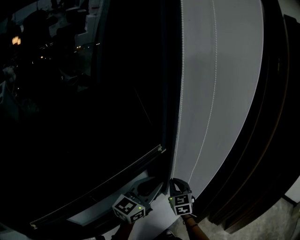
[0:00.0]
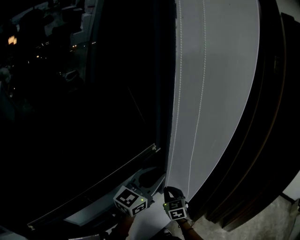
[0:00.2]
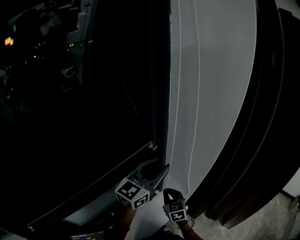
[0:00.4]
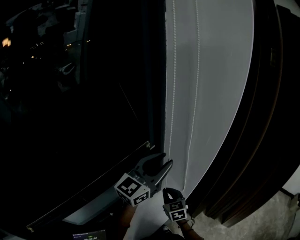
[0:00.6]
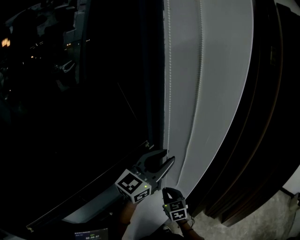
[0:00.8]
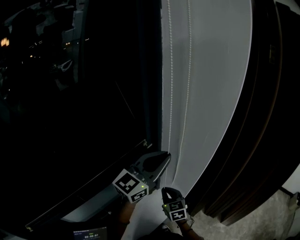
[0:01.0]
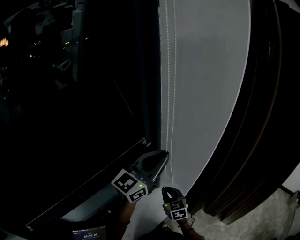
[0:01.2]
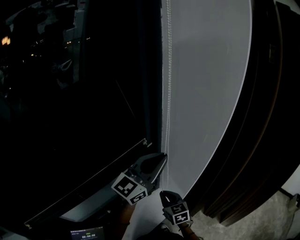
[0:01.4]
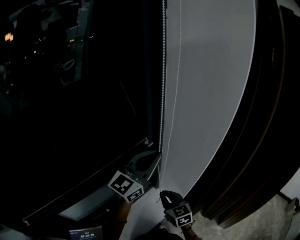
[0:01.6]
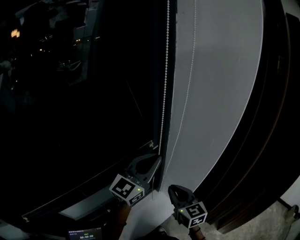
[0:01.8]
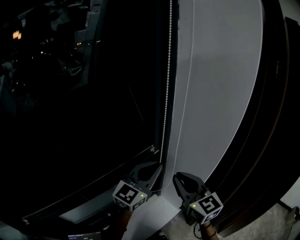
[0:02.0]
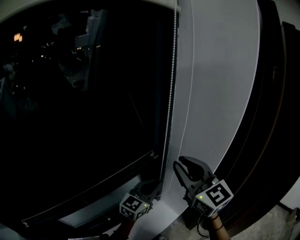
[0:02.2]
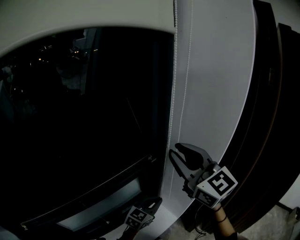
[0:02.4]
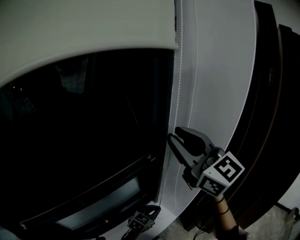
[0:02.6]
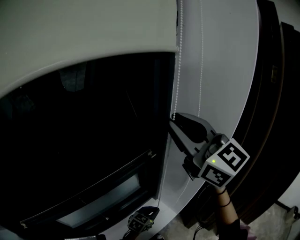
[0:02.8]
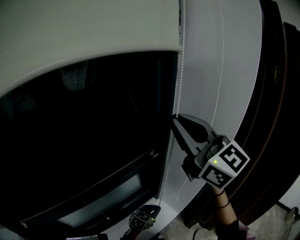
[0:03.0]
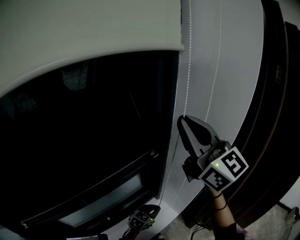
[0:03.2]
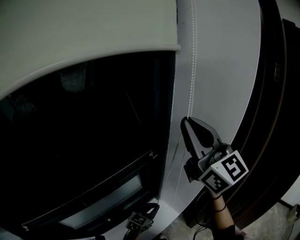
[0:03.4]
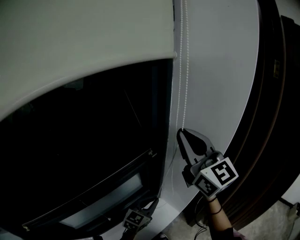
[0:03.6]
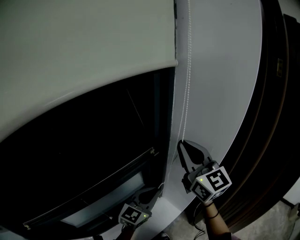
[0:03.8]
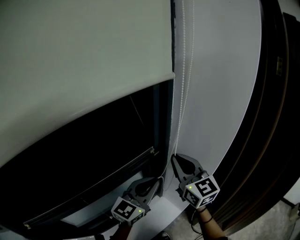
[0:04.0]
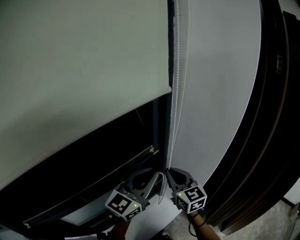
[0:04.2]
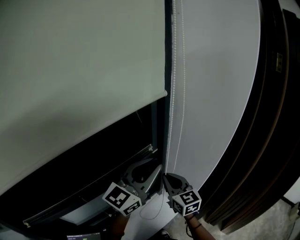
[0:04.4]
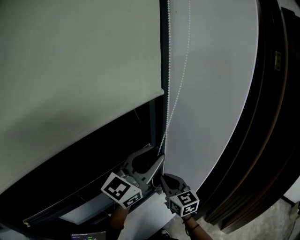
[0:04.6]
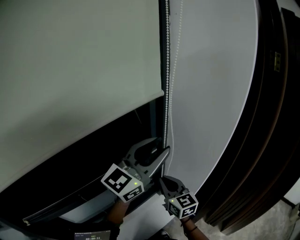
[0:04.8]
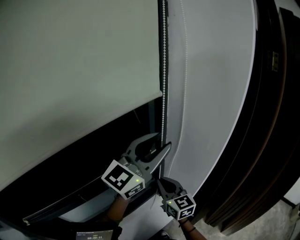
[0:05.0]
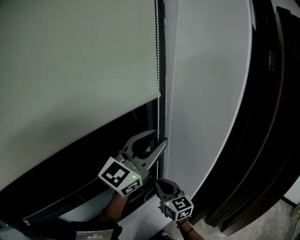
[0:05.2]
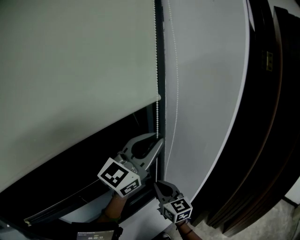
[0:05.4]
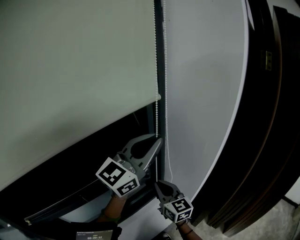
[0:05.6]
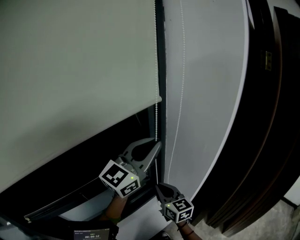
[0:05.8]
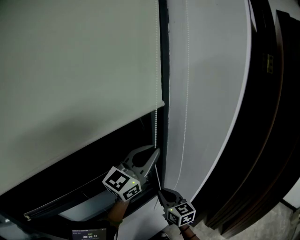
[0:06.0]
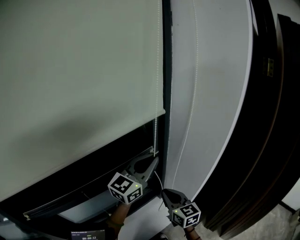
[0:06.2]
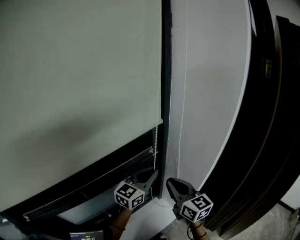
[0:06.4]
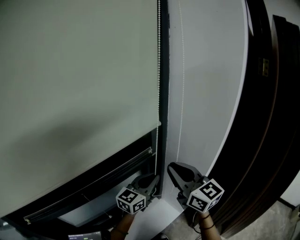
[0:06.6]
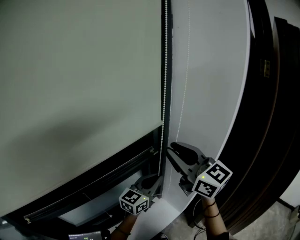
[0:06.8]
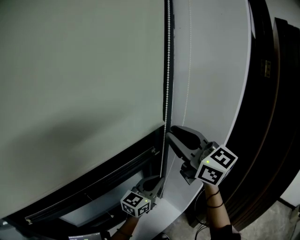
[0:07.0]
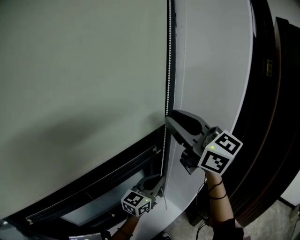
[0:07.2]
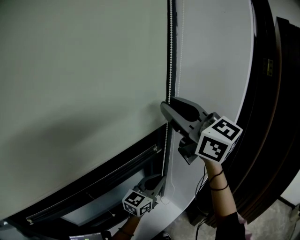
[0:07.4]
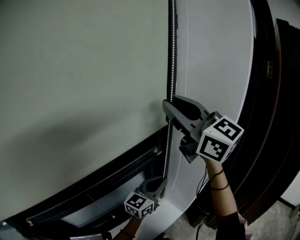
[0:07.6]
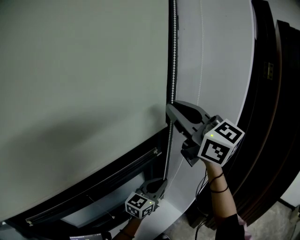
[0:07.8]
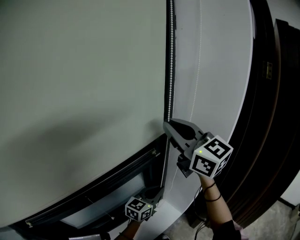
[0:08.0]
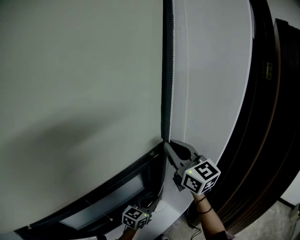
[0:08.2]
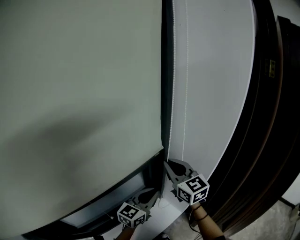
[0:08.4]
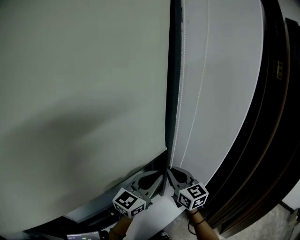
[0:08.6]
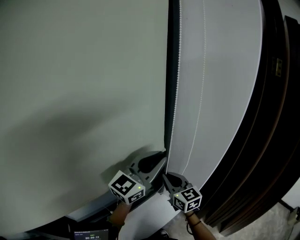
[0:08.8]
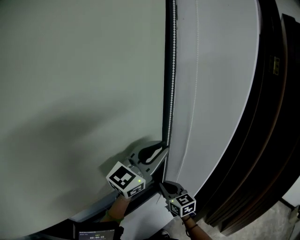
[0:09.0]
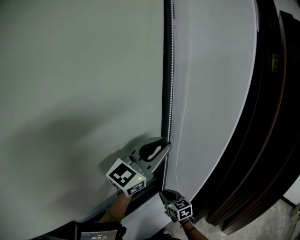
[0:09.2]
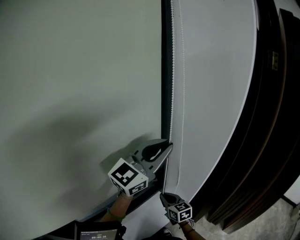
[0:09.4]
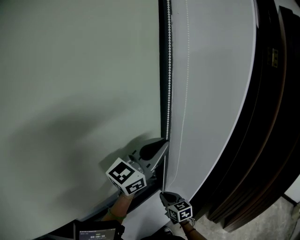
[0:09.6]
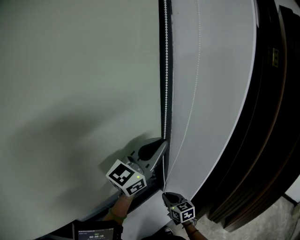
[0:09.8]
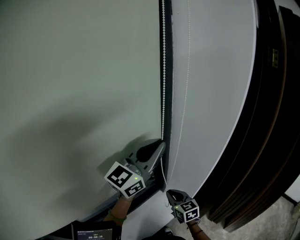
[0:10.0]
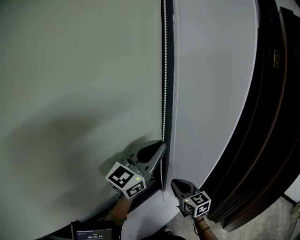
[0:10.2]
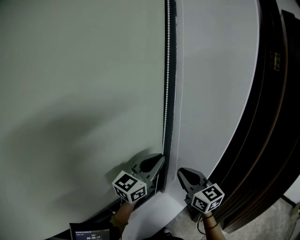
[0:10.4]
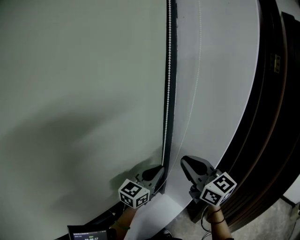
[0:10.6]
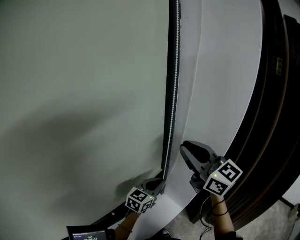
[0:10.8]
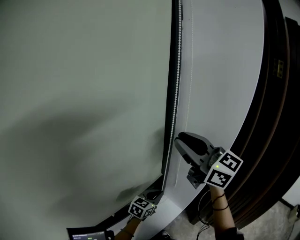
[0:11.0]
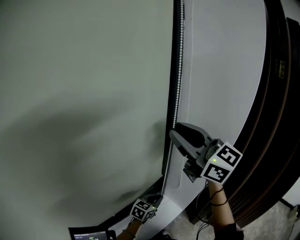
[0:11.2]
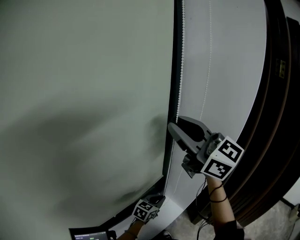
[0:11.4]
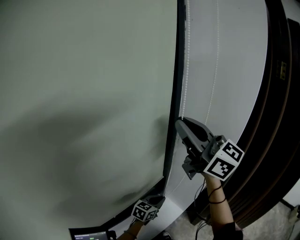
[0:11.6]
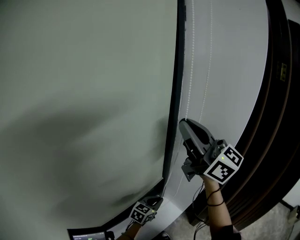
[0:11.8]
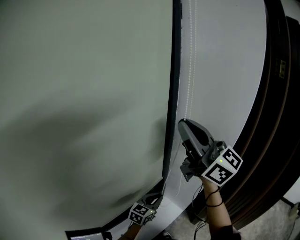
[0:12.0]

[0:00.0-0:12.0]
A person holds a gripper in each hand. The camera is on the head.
0:00.0 to 0:01.6: The right gripper travels backward by roughly 10 cm; the left gripper shifts about 10 cm upward and forward.
0:01.6 to 0:03.0: The right gripper goes approximately 40 cm upward, and tilts its fingers some 40 degrees upward. Meanwhile the left gripper is displaced downward by approximately 35 cm, and angles its fingers downward, by about 50 degrees.
0:03.0 to 0:04.4: The left gripper travels upward by about 35 cm, and angles its fingers upward, by about 50 degrees. The right gripper travels downward by about 35 cm, and turns by about 30 degrees.
0:04.4 to 0:06.0: The right gripper goes about 5 cm backward.
0:06.0 to 0:07.6: The left gripper heads downward, covering approximately 15 cm, while the right gripper is displaced upward by about 40 cm, and rotates roughly 40 degrees.
0:07.6 to 0:09.0: The right gripper shifts approximately 40 cm downward, and swivels roughly 30 degrees; the left gripper heads upward, covering about 15 cm.
0:09.0 to 0:10.4: The left gripper is displaced downward by approximately 10 cm, while the right gripper goes about 15 cm upward and to the right.
0:10.4 to 0:12.0: The right gripper moves upward, about 25 cm, and swivels some 30 degrees. Meanwhile the left gripper goes roughly 25 cm downward, and turns by roughly 30 degrees.

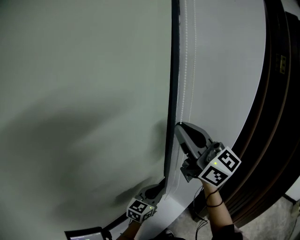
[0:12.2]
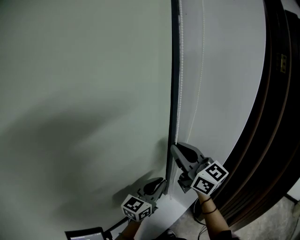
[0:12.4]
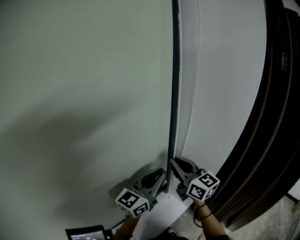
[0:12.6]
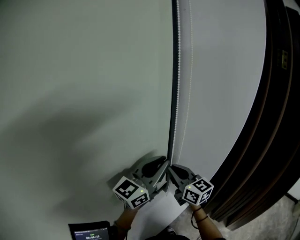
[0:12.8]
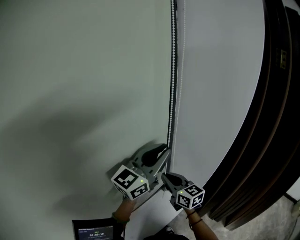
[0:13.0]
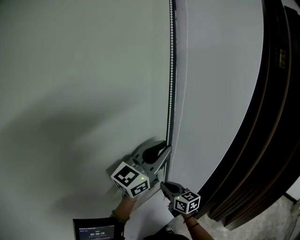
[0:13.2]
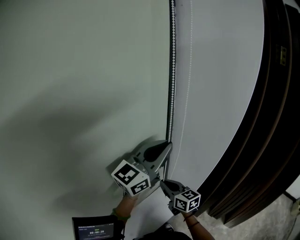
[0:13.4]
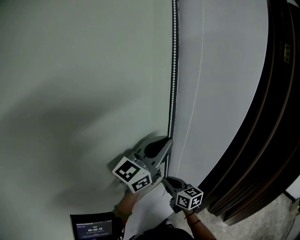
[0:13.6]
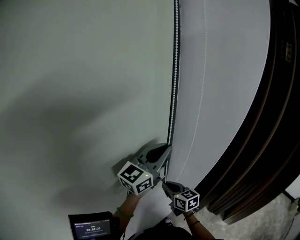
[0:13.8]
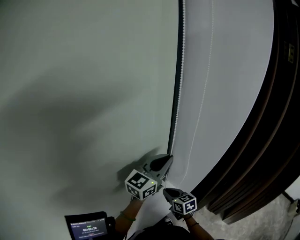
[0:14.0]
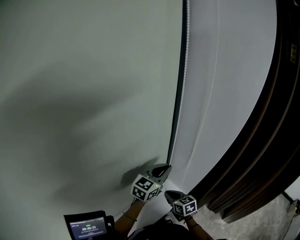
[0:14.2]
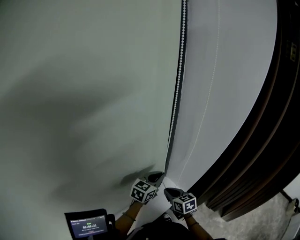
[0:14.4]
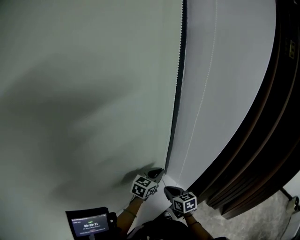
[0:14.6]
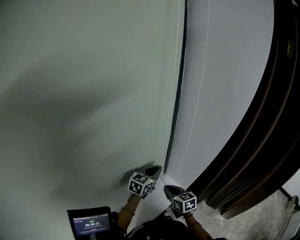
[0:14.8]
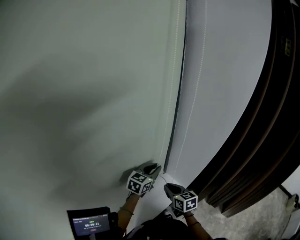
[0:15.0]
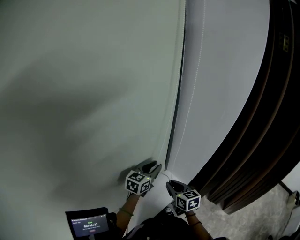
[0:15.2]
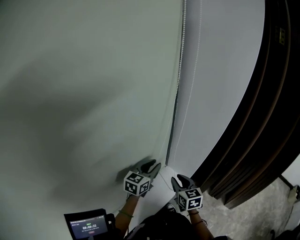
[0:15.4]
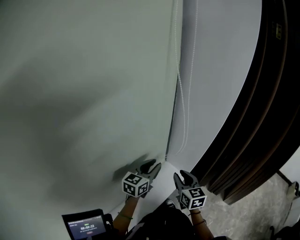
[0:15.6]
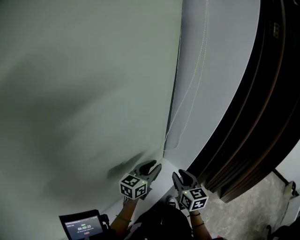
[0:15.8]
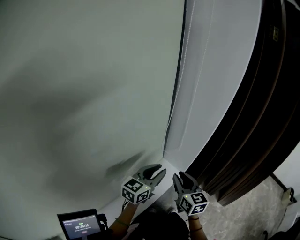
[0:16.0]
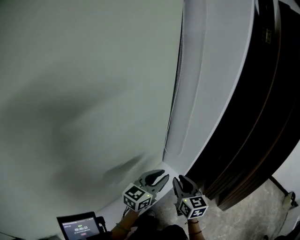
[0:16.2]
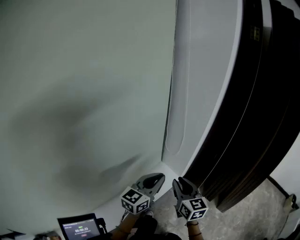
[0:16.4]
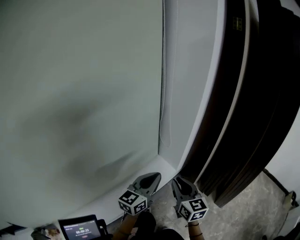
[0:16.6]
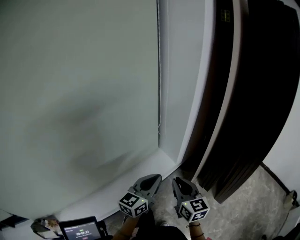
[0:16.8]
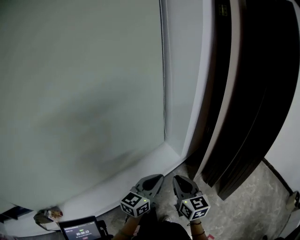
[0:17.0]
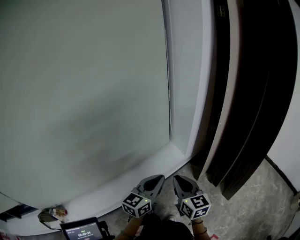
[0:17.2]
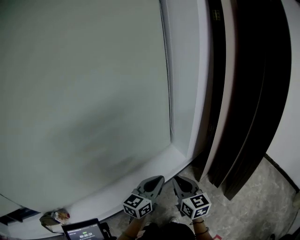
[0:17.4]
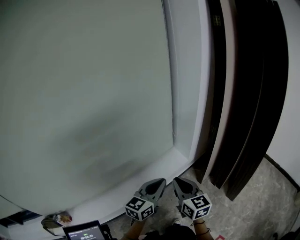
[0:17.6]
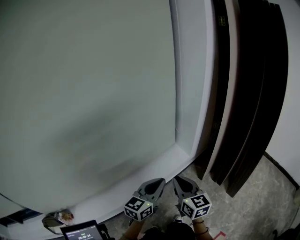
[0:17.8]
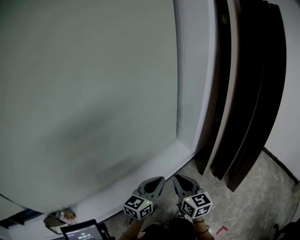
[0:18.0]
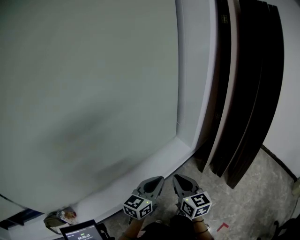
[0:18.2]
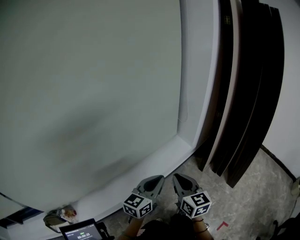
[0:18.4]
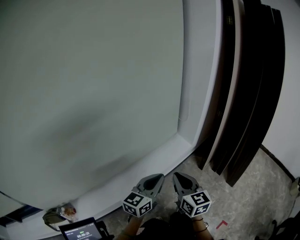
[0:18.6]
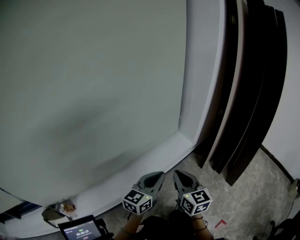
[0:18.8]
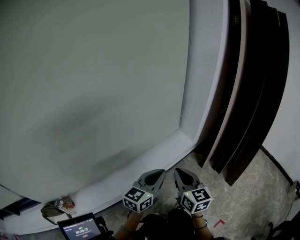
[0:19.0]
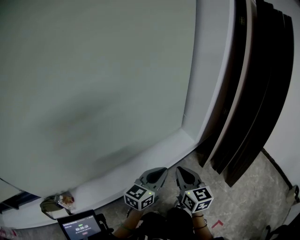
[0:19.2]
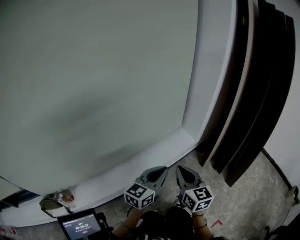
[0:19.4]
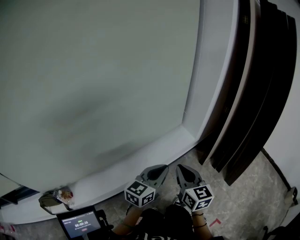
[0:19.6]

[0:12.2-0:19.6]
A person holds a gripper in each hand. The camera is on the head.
0:12.2 to 0:13.6: The left gripper goes about 25 cm upward, and rotates approximately 30 degrees. Meanwhile the right gripper heads downward, covering approximately 35 cm, and angles its fingers downward, by roughly 30 degrees.
0:13.6 to 0:15.2: The left gripper travels downward by about 30 cm, and angles its fingers downward, by approximately 30 degrees. Meanwhile the right gripper moves downward and backward, approximately 10 cm.
0:15.2 to 0:16.6: The left gripper goes roughly 30 cm backward and to the right, and closes its fingers. The right gripper shifts some 25 cm backward, to the right and upward.
0:16.6 to 0:18.2: The left gripper moves backward, roughly 25 cm, while the right gripper shifts some 25 cm backward and to the left.
0:18.2 to 0:19.6: The grippers make only small movements.

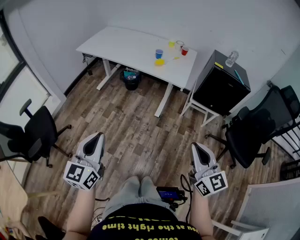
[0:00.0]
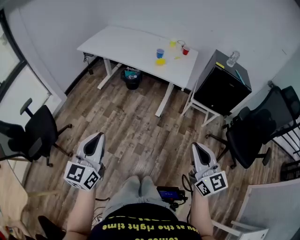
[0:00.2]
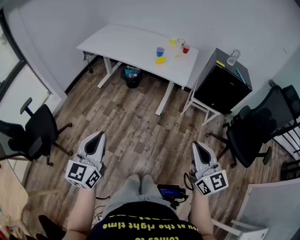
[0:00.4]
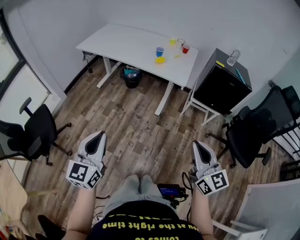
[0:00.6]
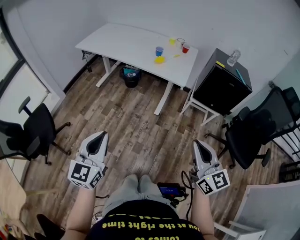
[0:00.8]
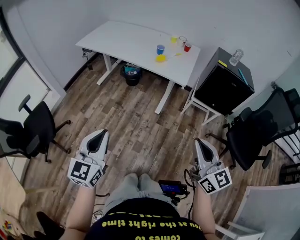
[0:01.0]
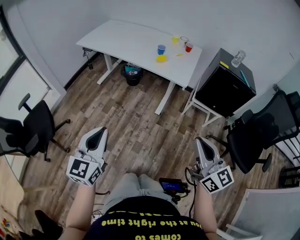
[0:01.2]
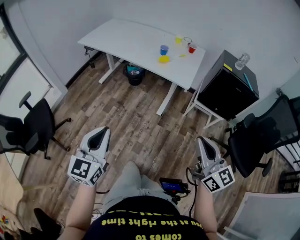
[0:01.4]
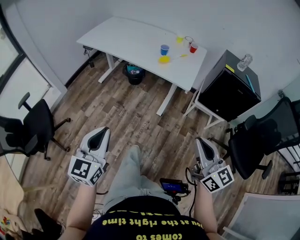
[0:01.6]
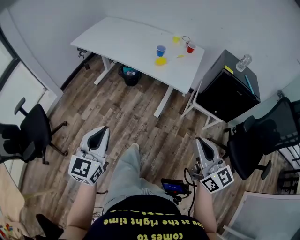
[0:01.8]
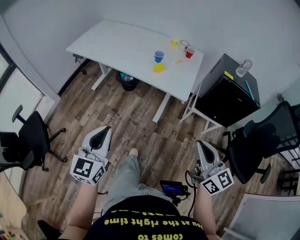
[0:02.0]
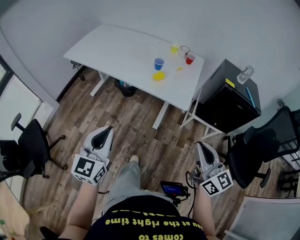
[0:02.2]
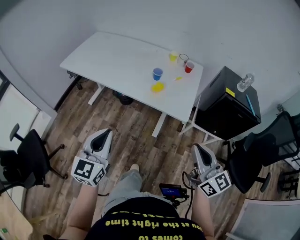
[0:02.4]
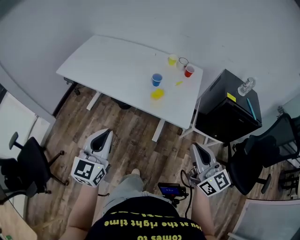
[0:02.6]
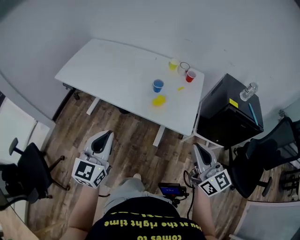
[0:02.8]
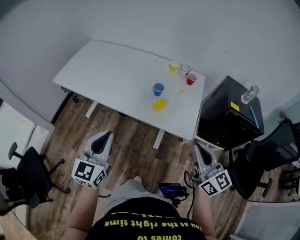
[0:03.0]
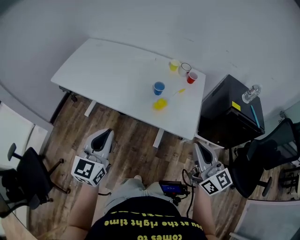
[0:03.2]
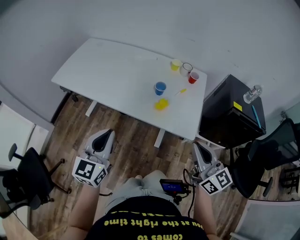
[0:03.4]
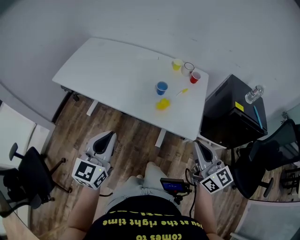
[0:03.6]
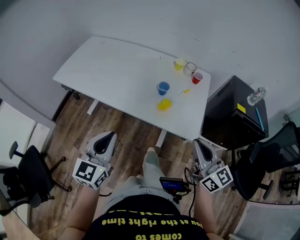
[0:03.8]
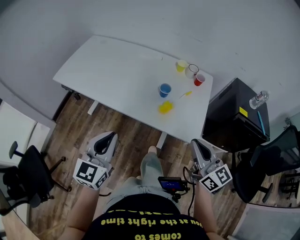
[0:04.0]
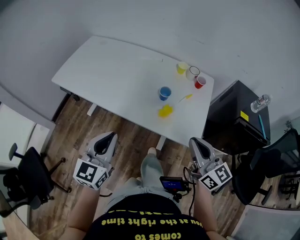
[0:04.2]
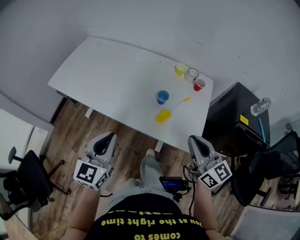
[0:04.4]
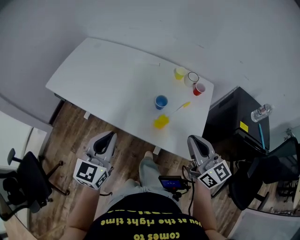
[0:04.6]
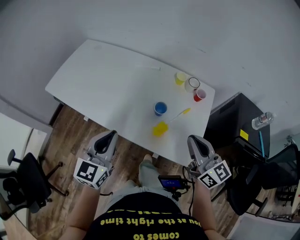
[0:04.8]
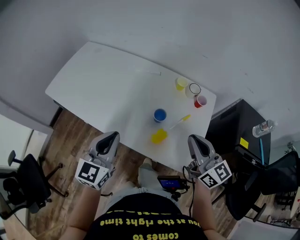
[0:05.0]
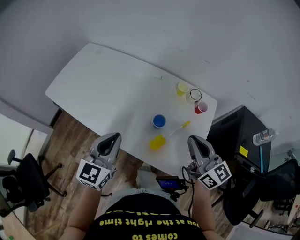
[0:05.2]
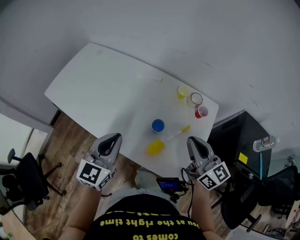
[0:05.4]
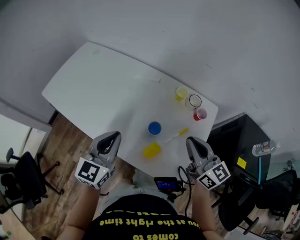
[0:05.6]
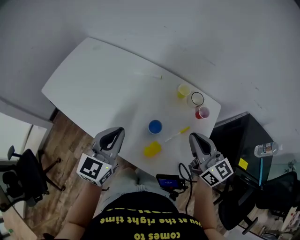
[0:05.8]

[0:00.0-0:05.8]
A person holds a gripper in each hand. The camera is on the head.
0:00.0 to 0:01.4: The right gripper travels forward by about 10 cm, while the left gripper moves forward and to the right, about 10 cm.
0:01.4 to 0:02.8: The grippers both shift forward by some 35 cm.
0:02.8 to 0:04.4: Both grippers move forward, roughly 15 cm.
0:04.4 to 0:05.8: The right gripper heads forward, covering some 25 cm, while the left gripper shifts about 25 cm forward and to the right.
